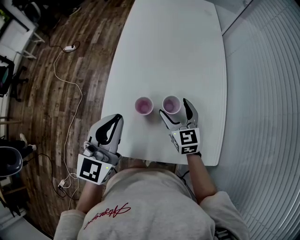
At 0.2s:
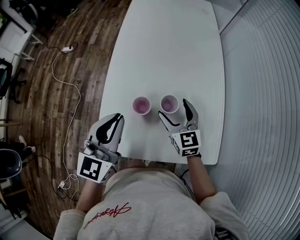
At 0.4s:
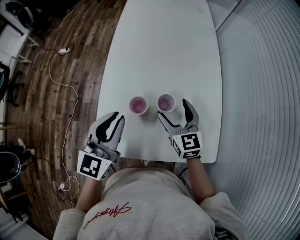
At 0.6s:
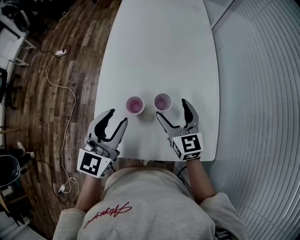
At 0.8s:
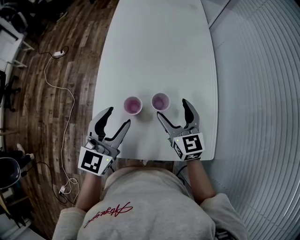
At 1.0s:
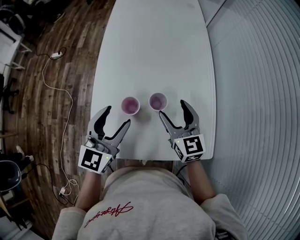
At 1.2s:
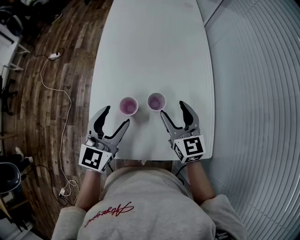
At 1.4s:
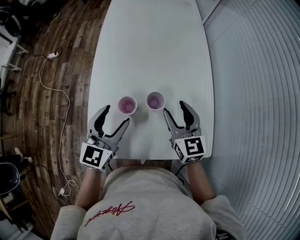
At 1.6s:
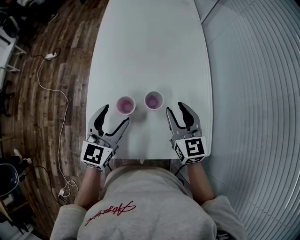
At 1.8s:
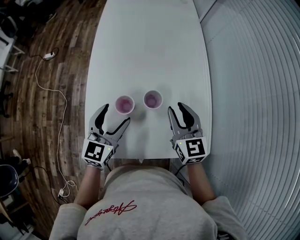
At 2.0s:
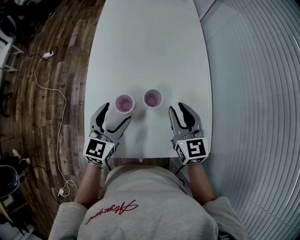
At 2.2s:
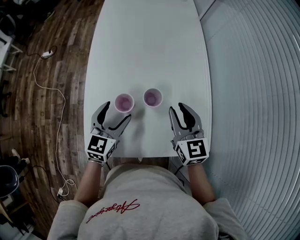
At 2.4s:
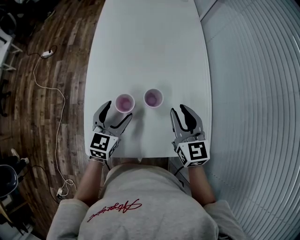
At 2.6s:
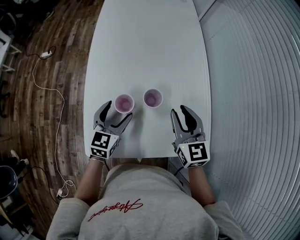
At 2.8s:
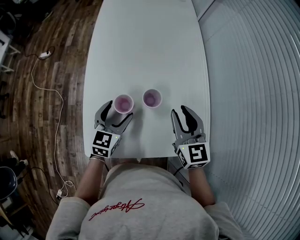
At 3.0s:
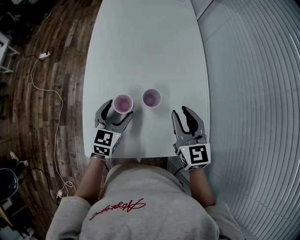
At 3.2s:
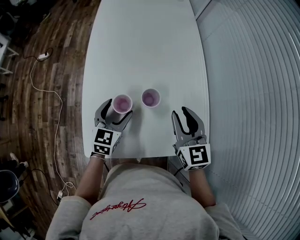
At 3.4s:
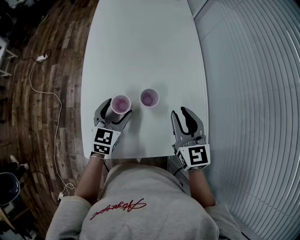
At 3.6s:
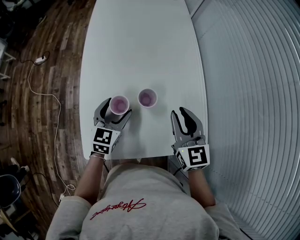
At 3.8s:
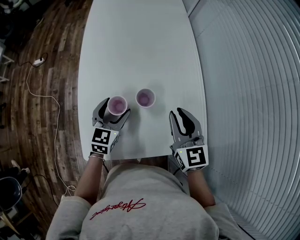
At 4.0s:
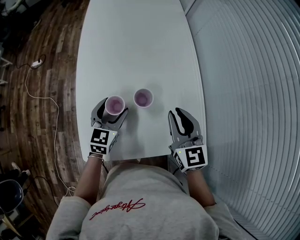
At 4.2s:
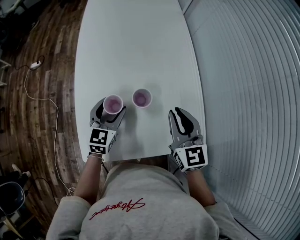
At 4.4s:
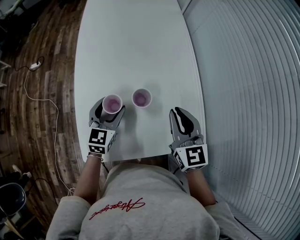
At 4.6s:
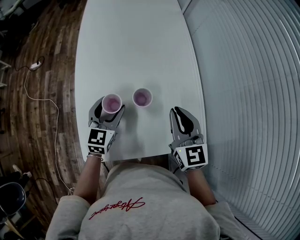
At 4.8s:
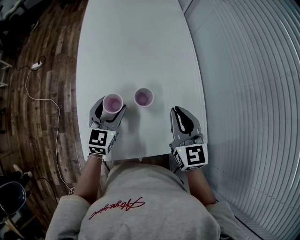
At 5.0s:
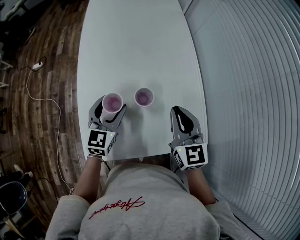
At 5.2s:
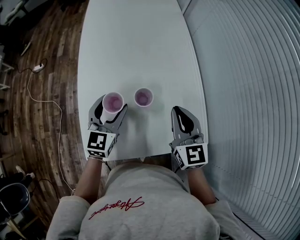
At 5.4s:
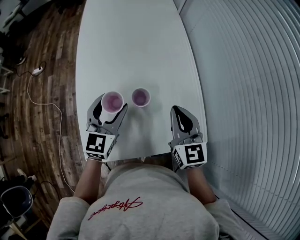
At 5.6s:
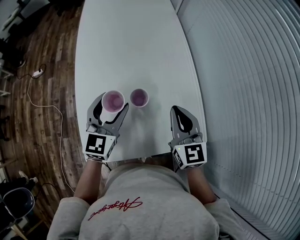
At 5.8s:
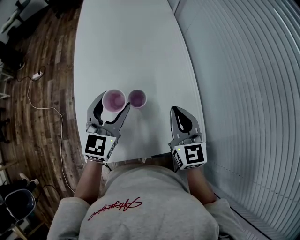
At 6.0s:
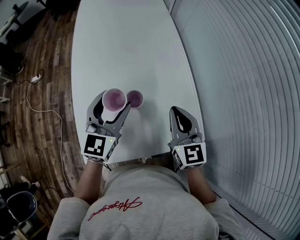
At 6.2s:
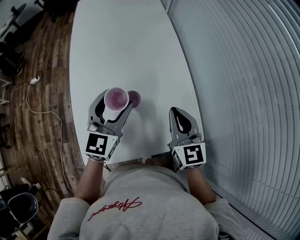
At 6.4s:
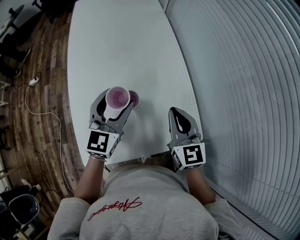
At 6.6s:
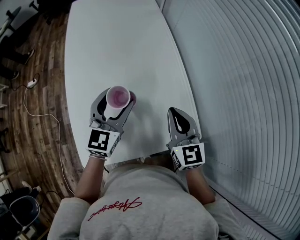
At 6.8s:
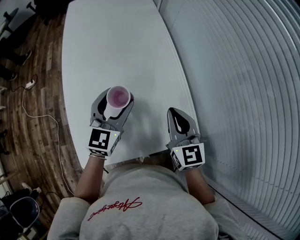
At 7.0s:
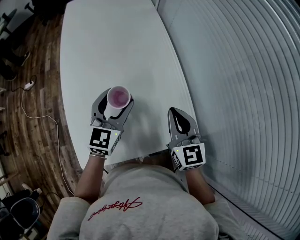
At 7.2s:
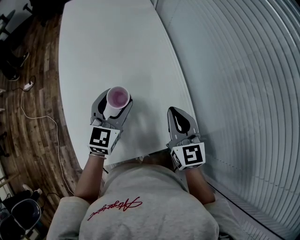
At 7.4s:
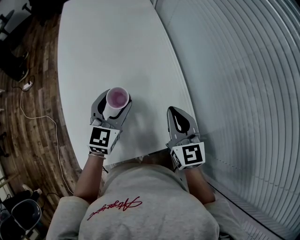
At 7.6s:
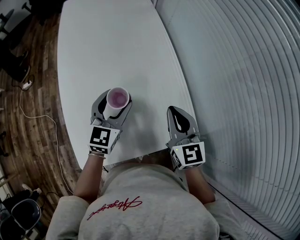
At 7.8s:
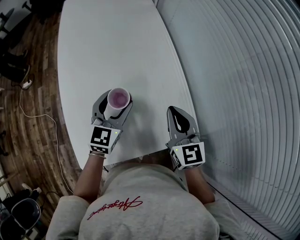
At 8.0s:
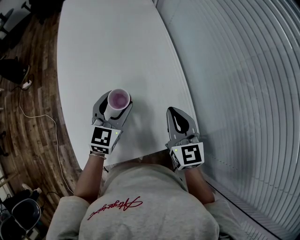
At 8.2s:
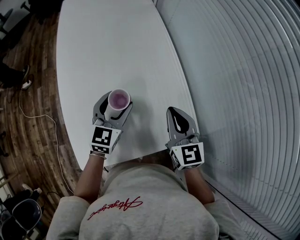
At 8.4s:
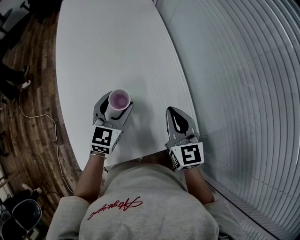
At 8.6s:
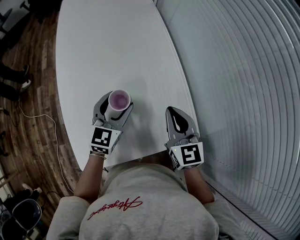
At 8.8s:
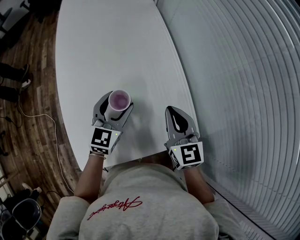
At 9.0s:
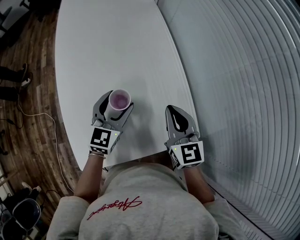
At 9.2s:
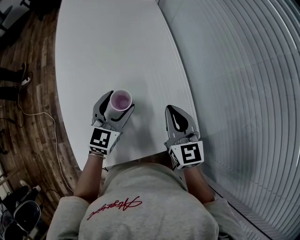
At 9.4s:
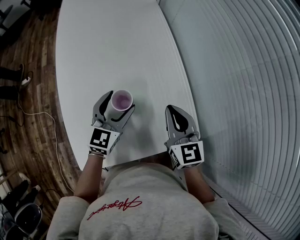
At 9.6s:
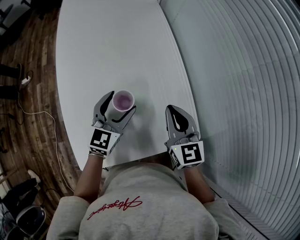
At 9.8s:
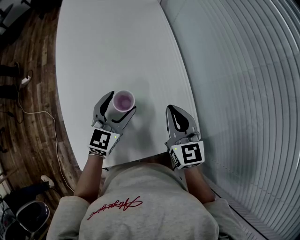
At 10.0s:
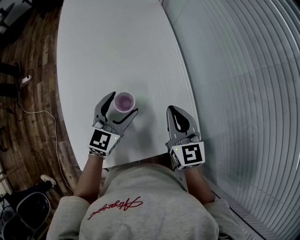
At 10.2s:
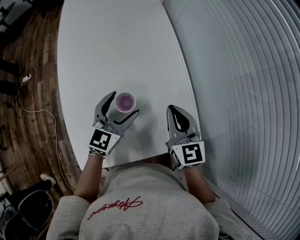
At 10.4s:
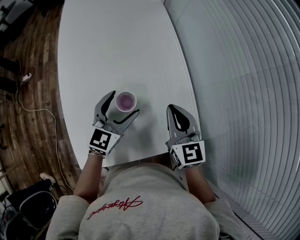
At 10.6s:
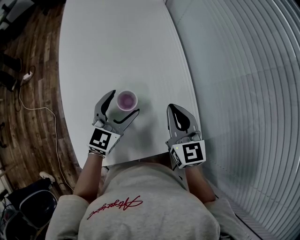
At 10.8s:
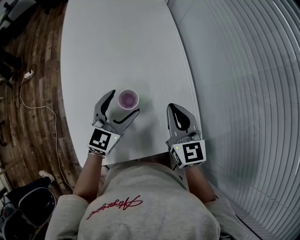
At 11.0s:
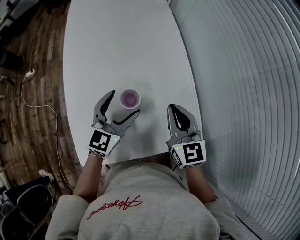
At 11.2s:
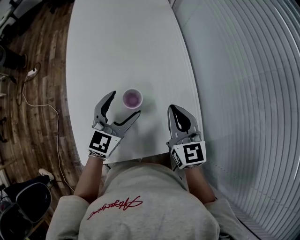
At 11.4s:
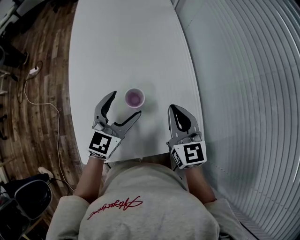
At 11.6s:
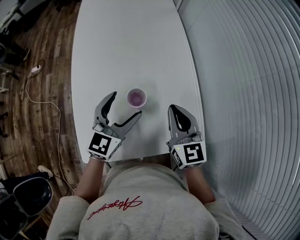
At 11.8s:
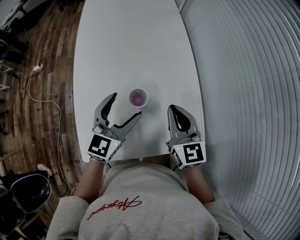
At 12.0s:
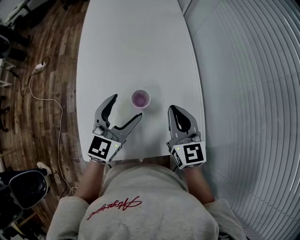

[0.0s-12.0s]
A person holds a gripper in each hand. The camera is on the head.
0.0s to 1.6s: The right gripper moves to the right and upward, roughly 10 cm, and closes its fingers, while the left gripper is displaced downward by some 10 cm, and opens its fingers.
1.6s to 3.0s: The left gripper goes roughly 10 cm downward.
3.0s to 4.4s: The grippers stay close to where they were, moving slightly.
4.4s to 6.0s: The left gripper is displaced upward and to the right by roughly 15 cm.
6.0s to 7.6s: The left gripper travels downward and to the right by roughly 10 cm.
7.6s to 10.4s: There are only small adjustments of the grippers.
10.4s to 12.0s: The left gripper is displaced upward by approximately 5 cm.

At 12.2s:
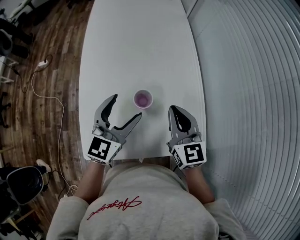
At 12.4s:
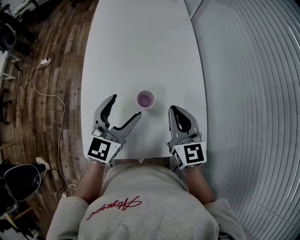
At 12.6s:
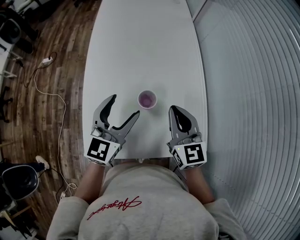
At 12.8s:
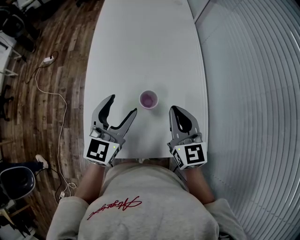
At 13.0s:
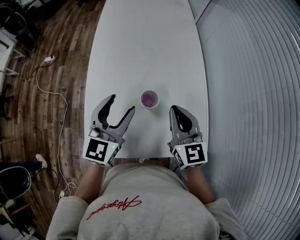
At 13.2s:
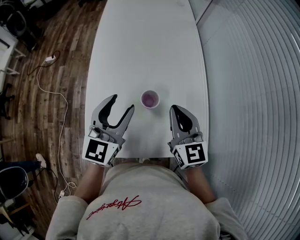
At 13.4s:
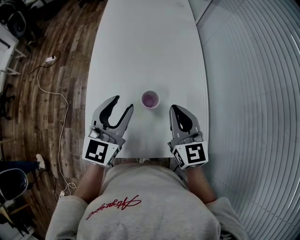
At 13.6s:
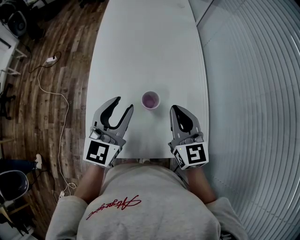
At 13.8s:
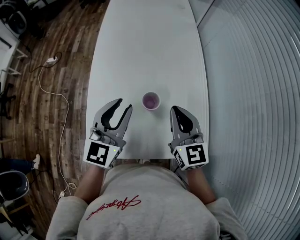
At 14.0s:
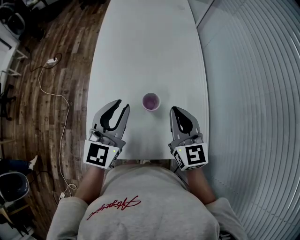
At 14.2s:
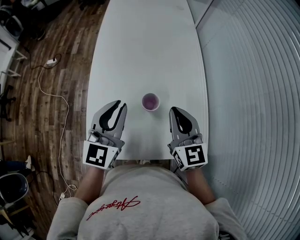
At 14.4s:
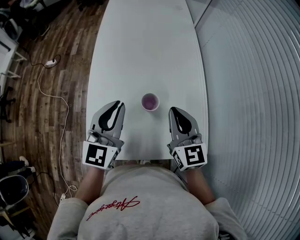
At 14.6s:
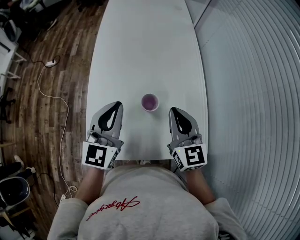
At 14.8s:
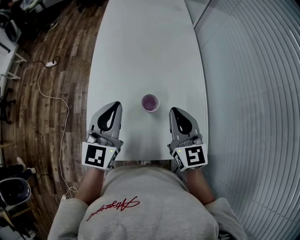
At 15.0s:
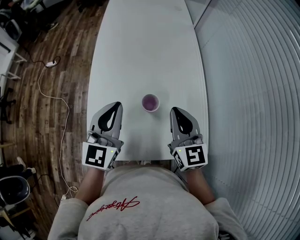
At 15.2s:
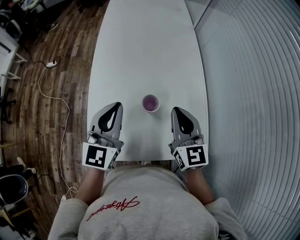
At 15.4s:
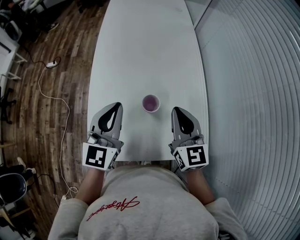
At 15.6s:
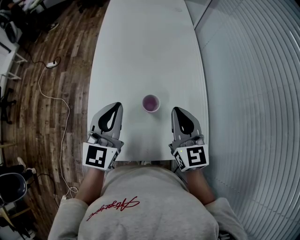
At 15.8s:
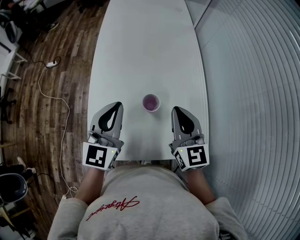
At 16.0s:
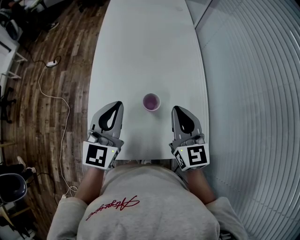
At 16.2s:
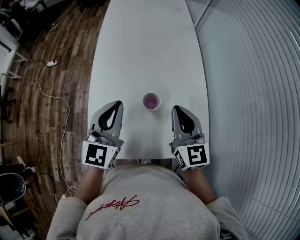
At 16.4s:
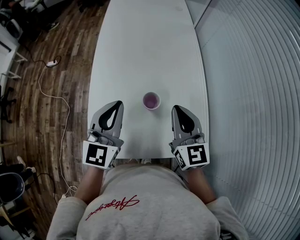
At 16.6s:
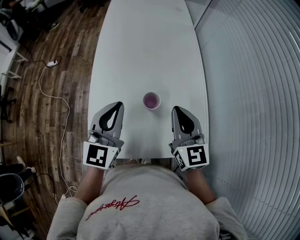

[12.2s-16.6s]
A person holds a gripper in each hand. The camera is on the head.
12.2s to 13.6s: The left gripper moves approximately 5 cm, and closes its fingers.
13.6s to 15.2s: The left gripper closes up.
15.2s to 16.6s: Both grippers stay about where they are.

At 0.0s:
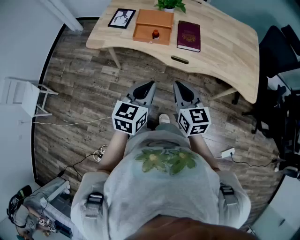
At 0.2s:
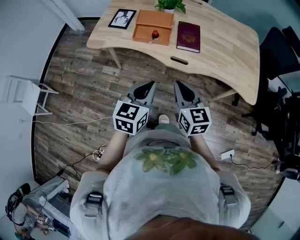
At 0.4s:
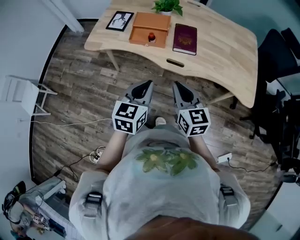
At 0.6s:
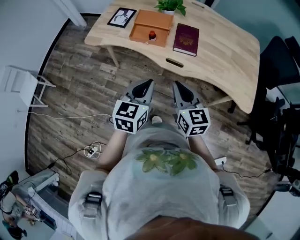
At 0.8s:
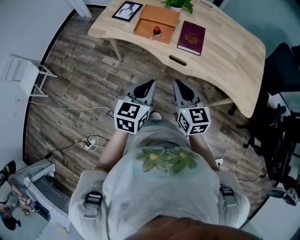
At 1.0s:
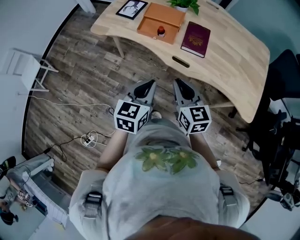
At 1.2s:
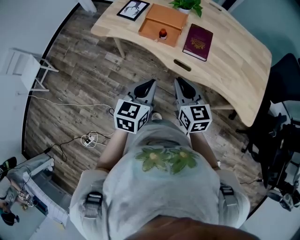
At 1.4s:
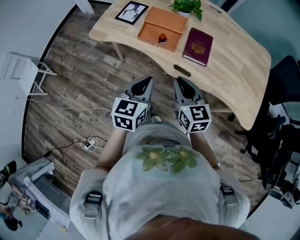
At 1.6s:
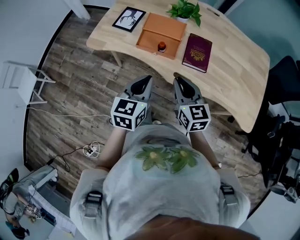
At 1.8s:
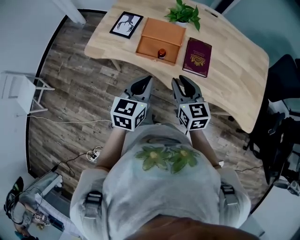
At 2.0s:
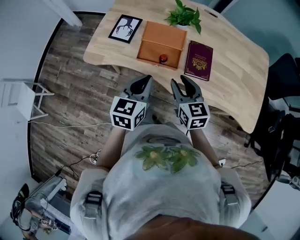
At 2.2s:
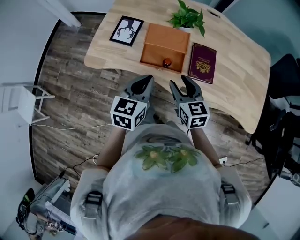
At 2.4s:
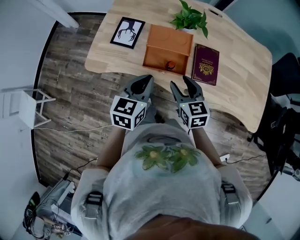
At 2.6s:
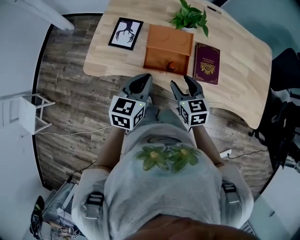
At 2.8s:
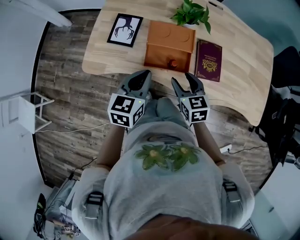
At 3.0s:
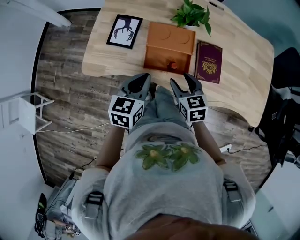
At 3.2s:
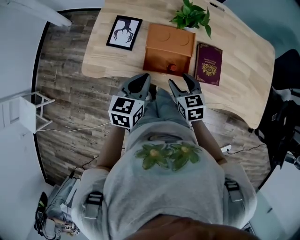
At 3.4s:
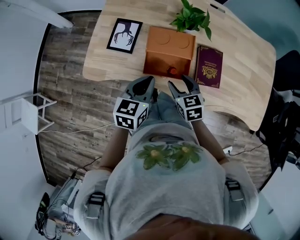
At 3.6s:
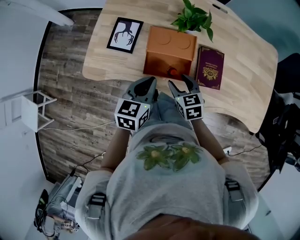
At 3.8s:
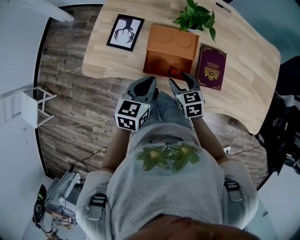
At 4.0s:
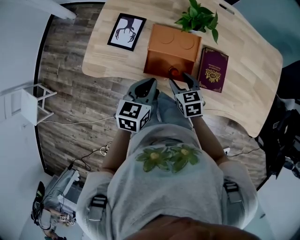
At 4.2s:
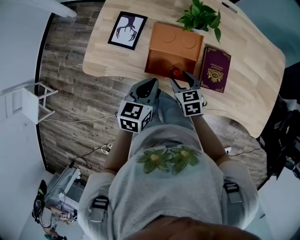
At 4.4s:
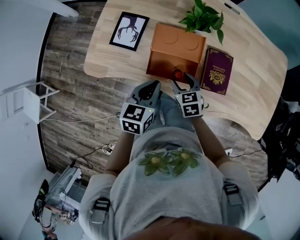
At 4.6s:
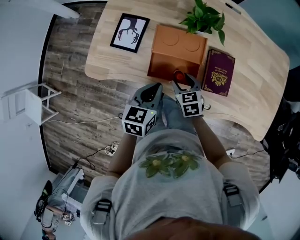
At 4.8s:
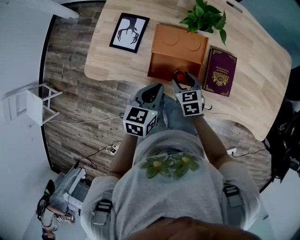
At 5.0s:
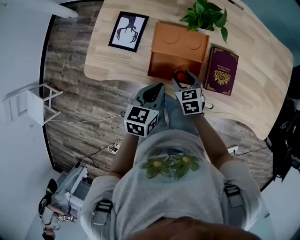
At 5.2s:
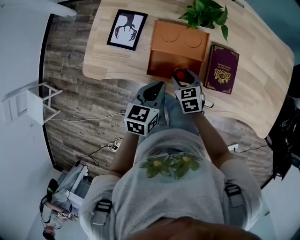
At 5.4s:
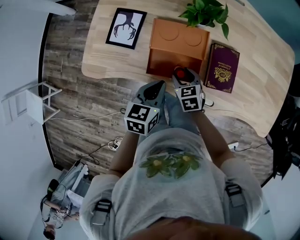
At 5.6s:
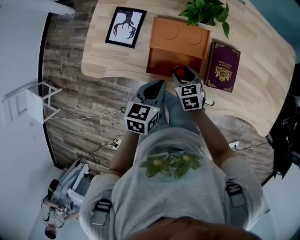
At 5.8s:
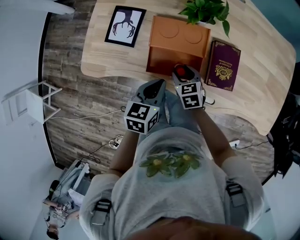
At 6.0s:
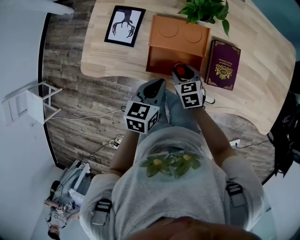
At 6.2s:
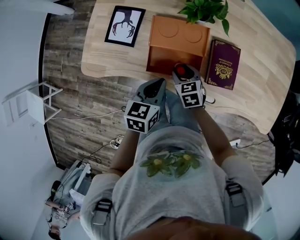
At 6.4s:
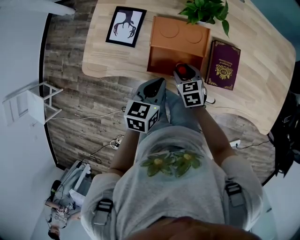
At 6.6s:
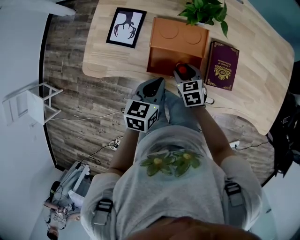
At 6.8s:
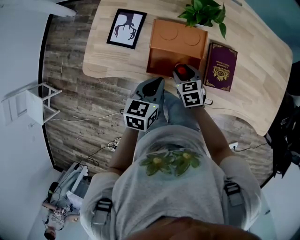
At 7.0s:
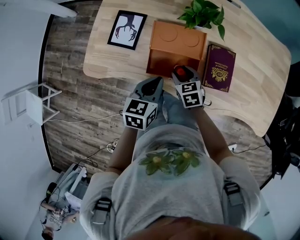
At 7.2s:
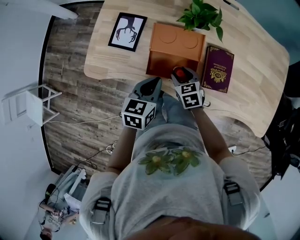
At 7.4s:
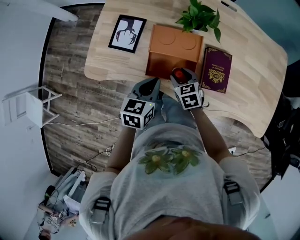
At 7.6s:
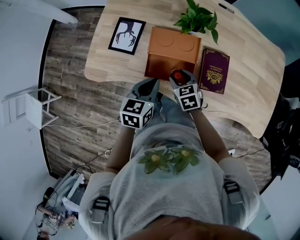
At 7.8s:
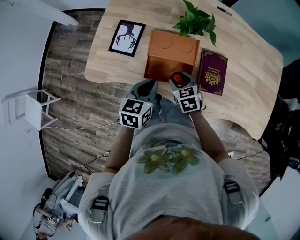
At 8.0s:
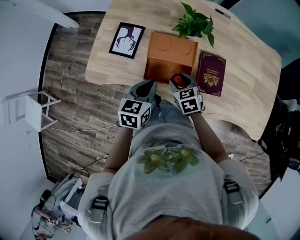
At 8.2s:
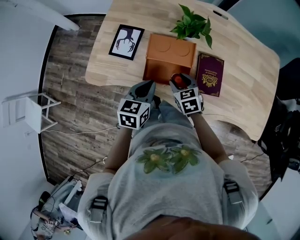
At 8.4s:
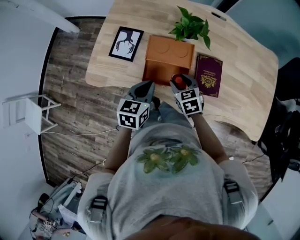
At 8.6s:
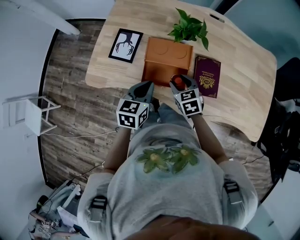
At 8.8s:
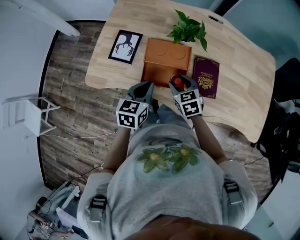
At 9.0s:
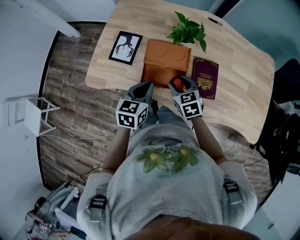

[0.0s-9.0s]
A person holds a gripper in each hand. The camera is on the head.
0.0s to 1.6s: The two grippers go about 15 cm forward.
1.6s to 3.0s: The right gripper moves forward, downward and to the left, approximately 20 cm, turns by about 20 degrees, and opens its fingers. The left gripper is displaced forward and to the left by some 20 cm.
3.0s to 4.4s: The left gripper shifts by some 5 cm. The right gripper shifts approximately 10 cm downward.
4.4s to 6.0s: The right gripper is displaced downward by roughly 5 cm.
6.0s to 7.6s: The grippers move only a little.
7.6s to 9.0s: The right gripper heads upward, covering approximately 10 cm.
